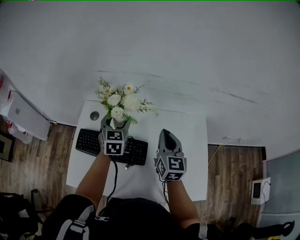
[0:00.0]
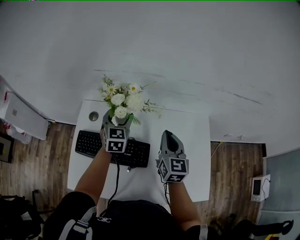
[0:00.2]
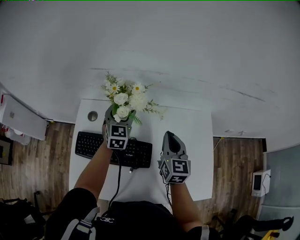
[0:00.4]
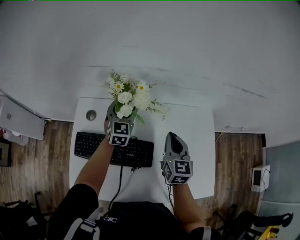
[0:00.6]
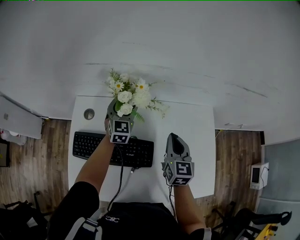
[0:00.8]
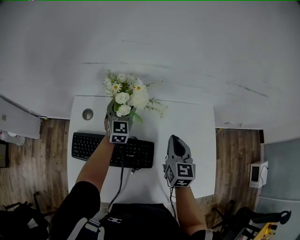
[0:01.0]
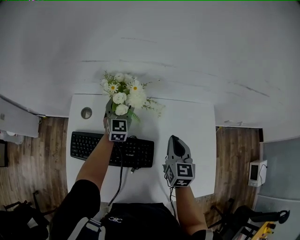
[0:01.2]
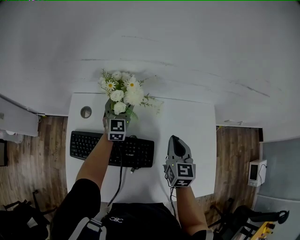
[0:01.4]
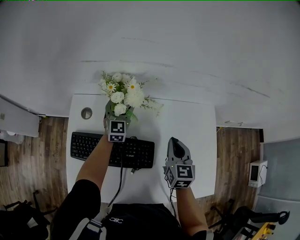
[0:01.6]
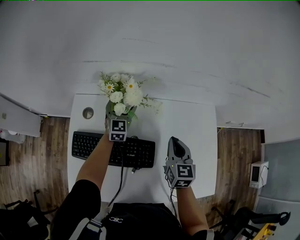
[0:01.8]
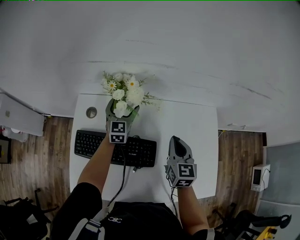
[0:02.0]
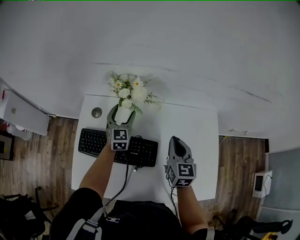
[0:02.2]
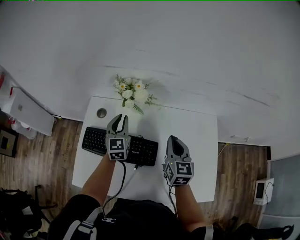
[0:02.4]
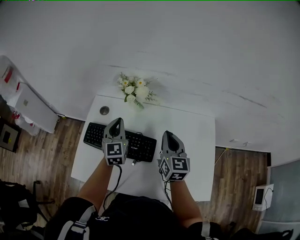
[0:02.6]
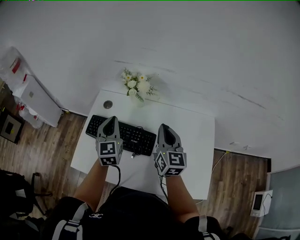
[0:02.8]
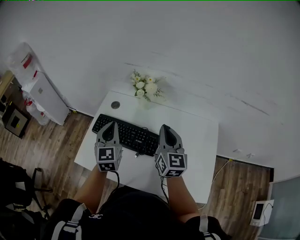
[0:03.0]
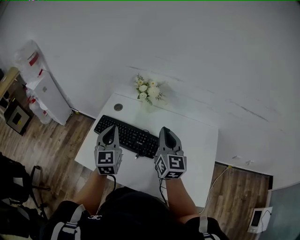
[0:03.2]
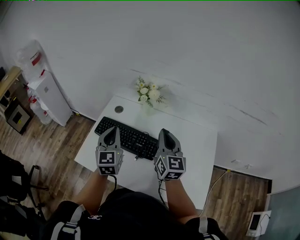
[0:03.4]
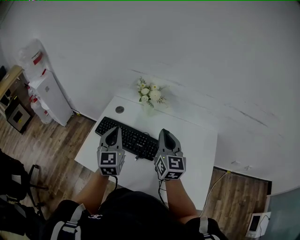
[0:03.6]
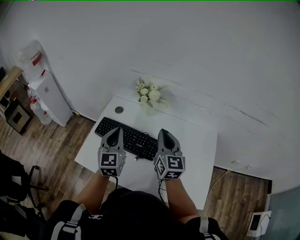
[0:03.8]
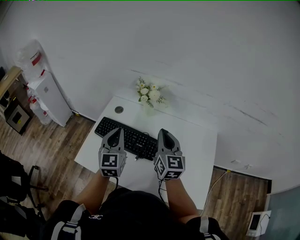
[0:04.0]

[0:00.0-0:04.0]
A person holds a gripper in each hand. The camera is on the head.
0:00.0 to 0:01.4: The left gripper moves forward and downward, roughly 20 cm, while the right gripper moves downward, about 10 cm.
0:01.4 to 0:02.6: The left gripper travels backward and upward by roughly 25 cm, and closes up, while the right gripper shifts approximately 10 cm upward and backward.
0:02.6 to 0:04.0: The left gripper moves backward and upward, roughly 20 cm, while the right gripper heads upward, backward and to the left, covering about 10 cm.

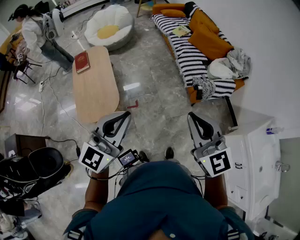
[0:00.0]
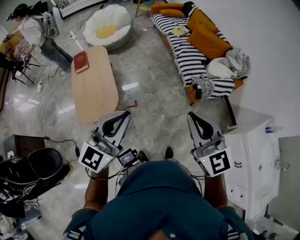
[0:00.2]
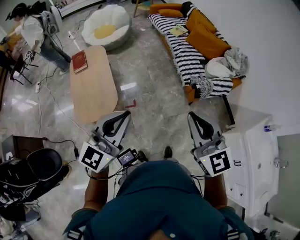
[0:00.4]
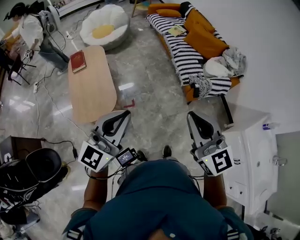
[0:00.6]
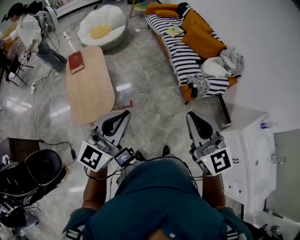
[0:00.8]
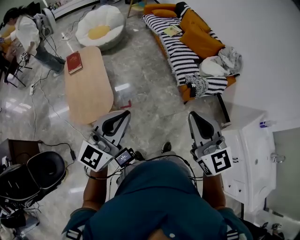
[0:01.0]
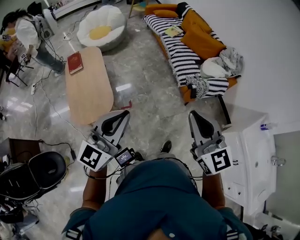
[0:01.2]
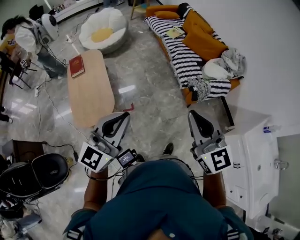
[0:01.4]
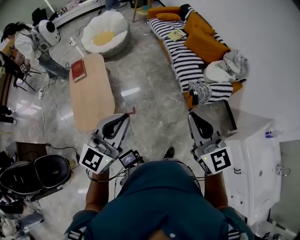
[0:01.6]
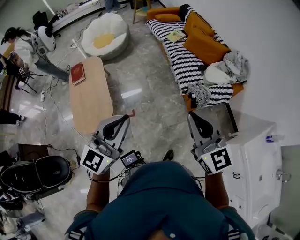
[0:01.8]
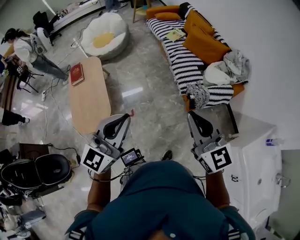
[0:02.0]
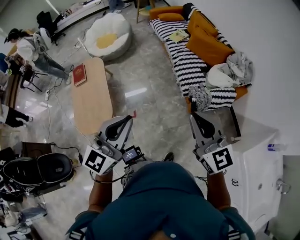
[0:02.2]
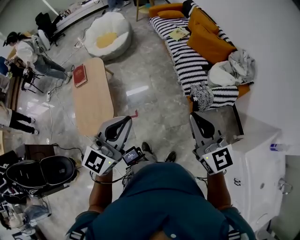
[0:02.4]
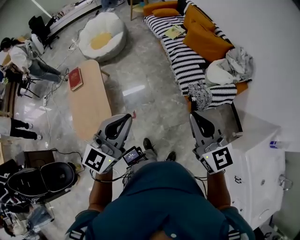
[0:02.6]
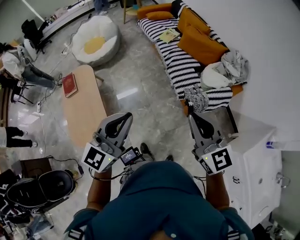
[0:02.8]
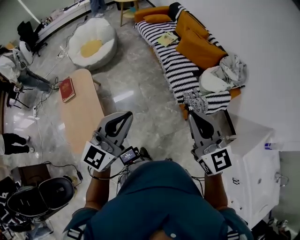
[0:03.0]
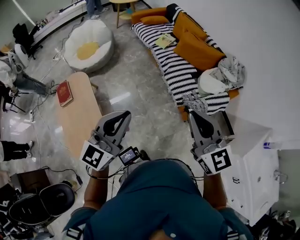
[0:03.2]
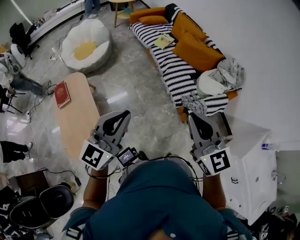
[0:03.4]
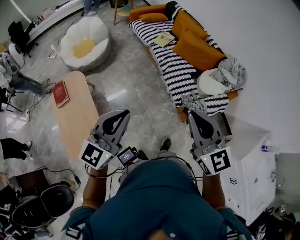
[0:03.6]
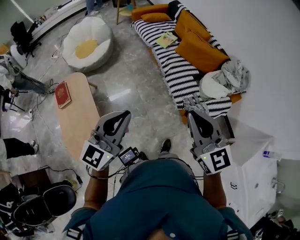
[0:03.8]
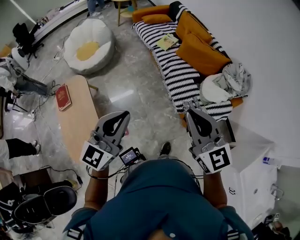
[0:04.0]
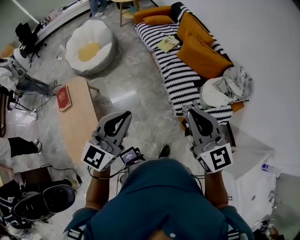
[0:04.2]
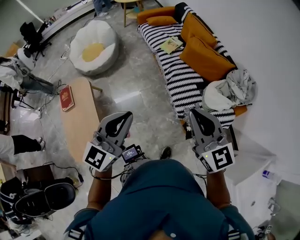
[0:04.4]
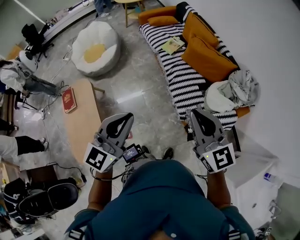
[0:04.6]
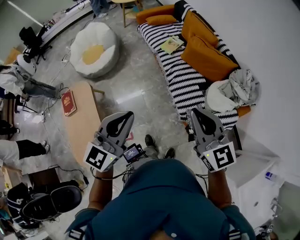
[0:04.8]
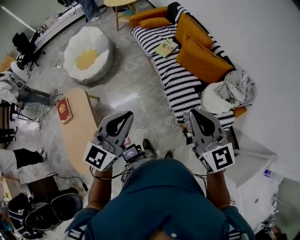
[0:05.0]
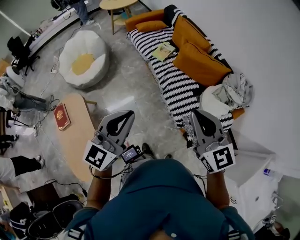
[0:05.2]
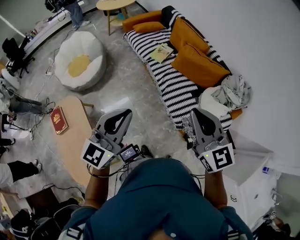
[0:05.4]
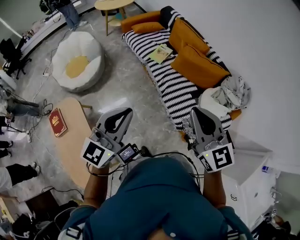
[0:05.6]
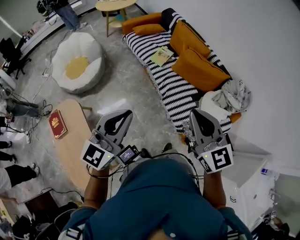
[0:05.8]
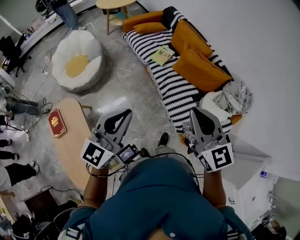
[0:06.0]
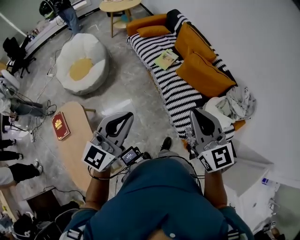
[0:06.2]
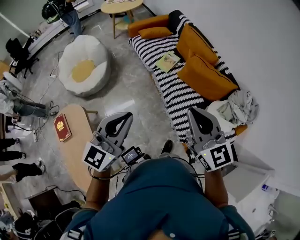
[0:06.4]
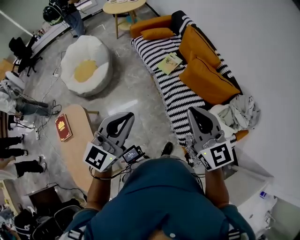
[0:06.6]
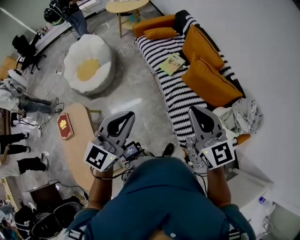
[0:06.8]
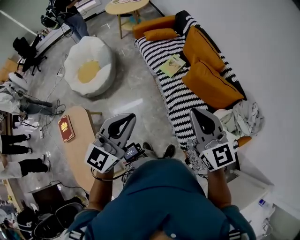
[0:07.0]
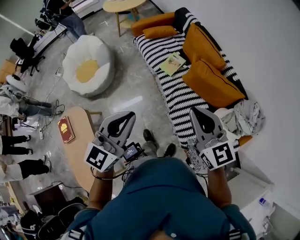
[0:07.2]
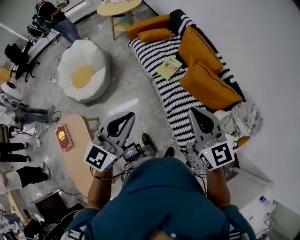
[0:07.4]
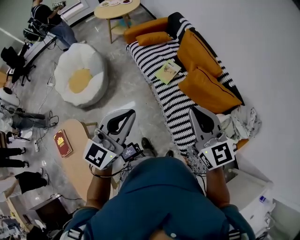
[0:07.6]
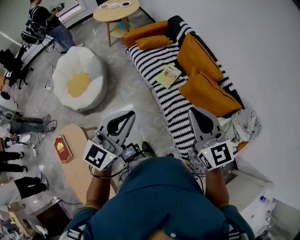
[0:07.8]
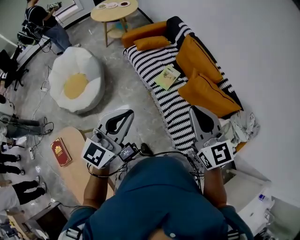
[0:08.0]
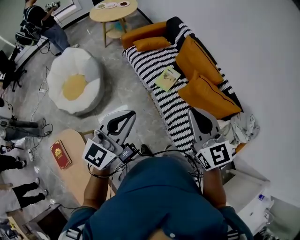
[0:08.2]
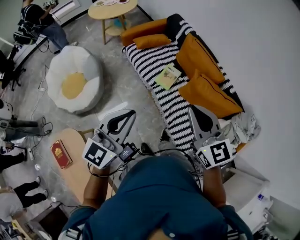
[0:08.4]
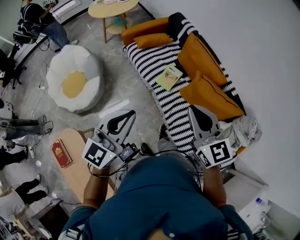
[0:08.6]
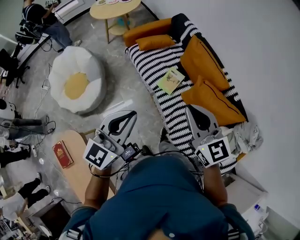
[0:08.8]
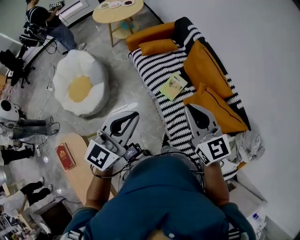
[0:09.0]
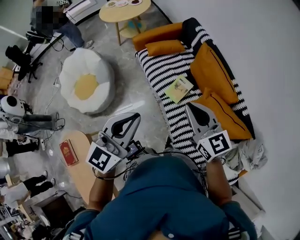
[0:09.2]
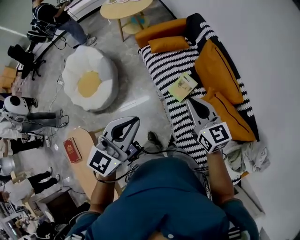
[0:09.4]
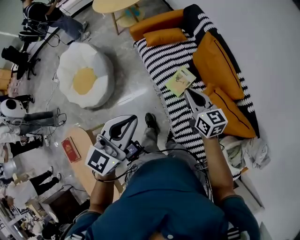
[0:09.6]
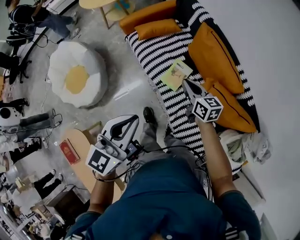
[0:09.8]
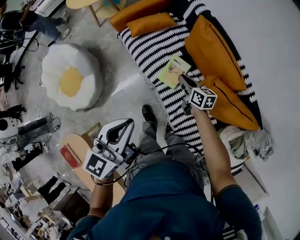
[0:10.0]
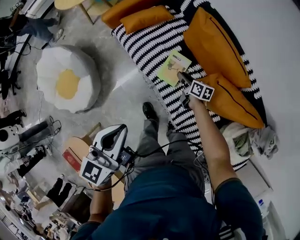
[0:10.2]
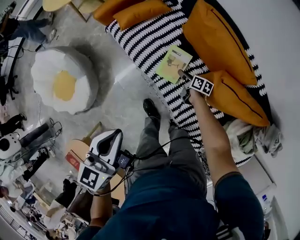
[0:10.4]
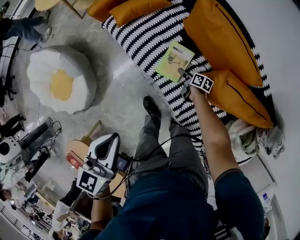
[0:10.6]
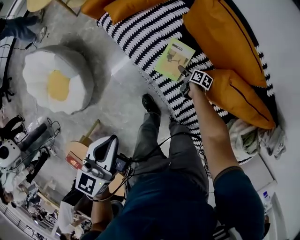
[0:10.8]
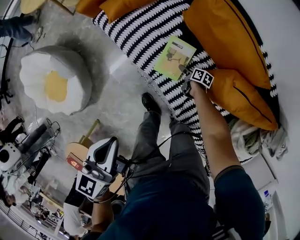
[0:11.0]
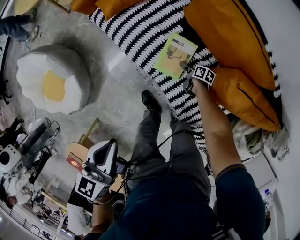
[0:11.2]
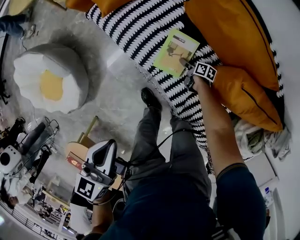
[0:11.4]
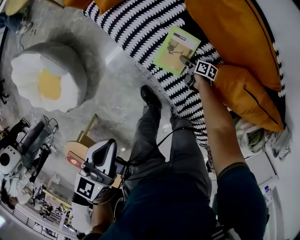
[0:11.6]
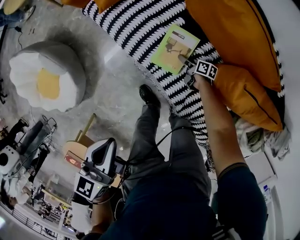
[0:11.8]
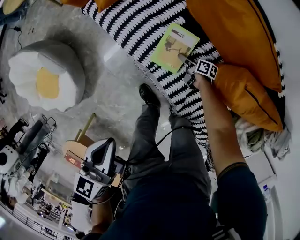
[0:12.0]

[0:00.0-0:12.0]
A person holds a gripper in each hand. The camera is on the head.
0:00.0 to 0:01.6: The left gripper changes place by roughly 5 cm; the right gripper travels to the right and forward by some 10 cm.
0:01.6 to 0:03.0: Both grippers travel together forward, approximately 20 cm.
0:03.0 to 0:04.4: The two grippers go some 20 cm forward.
0:04.4 to 0:06.0: The two grippers go some 20 cm forward and to the left.
0:06.0 to 0:07.6: The two grippers go roughly 25 cm forward.
0:07.6 to 0:09.0: The grippers both shift forward by roughly 20 cm.
0:09.0 to 0:10.4: The left gripper goes about 25 cm downward and forward, and swivels roughly 30 degrees. Meanwhile the right gripper goes roughly 70 cm downward and forward, rotates around the line of its fingers by about 70 degrees, clockwise from behind, and opens its fingers.
0:10.4 to 0:12.0: The two grippers go approximately 15 cm downward.

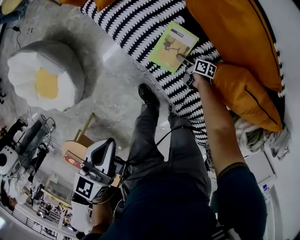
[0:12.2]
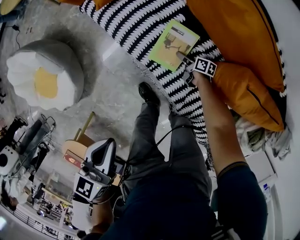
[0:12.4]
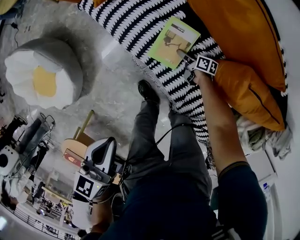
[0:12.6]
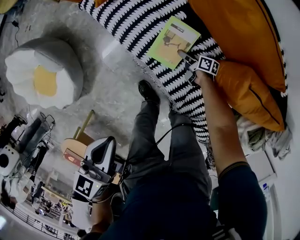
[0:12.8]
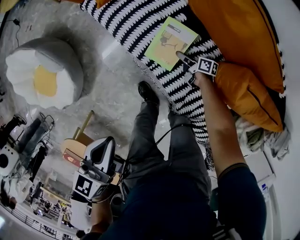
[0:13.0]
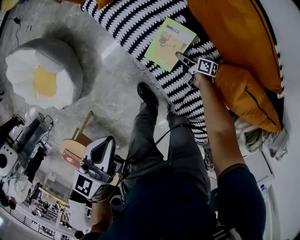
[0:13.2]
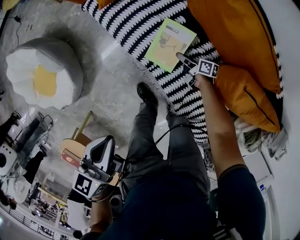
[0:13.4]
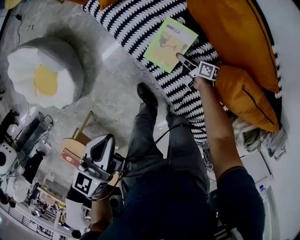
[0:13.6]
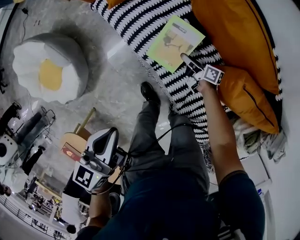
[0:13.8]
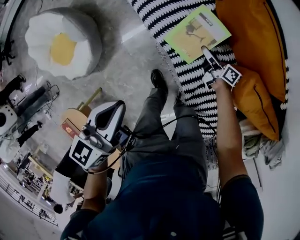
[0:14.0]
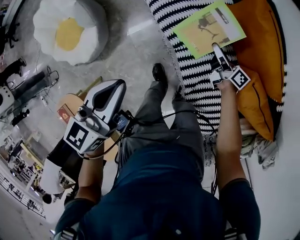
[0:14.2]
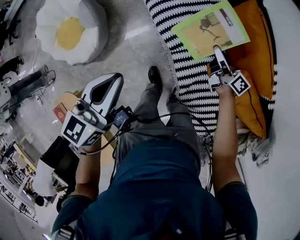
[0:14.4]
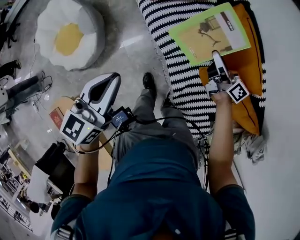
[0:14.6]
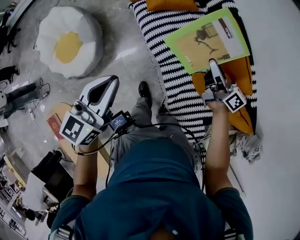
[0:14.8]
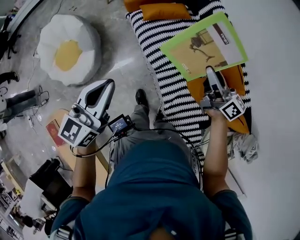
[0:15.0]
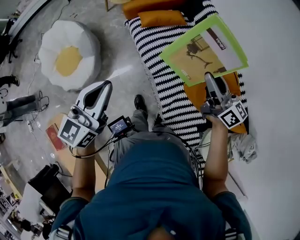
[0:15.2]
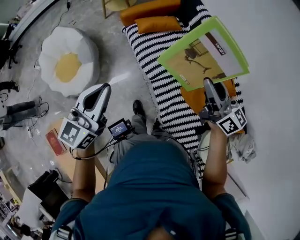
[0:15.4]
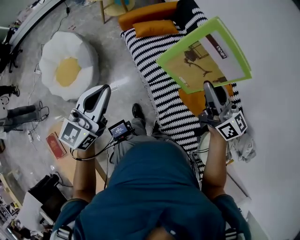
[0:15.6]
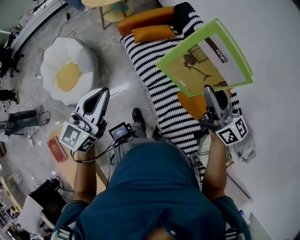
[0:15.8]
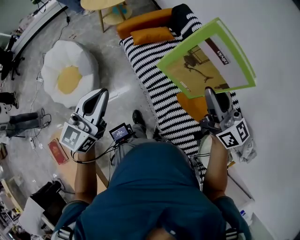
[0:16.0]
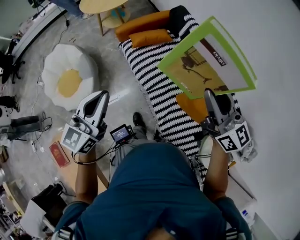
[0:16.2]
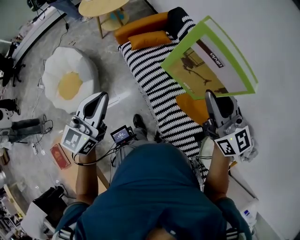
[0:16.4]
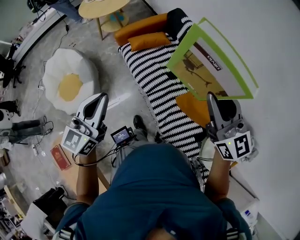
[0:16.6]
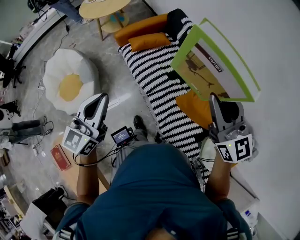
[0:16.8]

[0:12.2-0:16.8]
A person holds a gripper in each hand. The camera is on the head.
0:12.2 to 0:13.8: The left gripper travels downward by roughly 5 cm. Meanwhile the right gripper swivels some 20 degrees, and closes.
0:13.8 to 0:15.2: The right gripper goes about 60 cm upward, and rotates around the line of its fingers by about 40 degrees, counterclockwise from behind. The left gripper shifts some 25 cm upward, and turns by approximately 30 degrees.
0:15.2 to 0:16.8: The right gripper moves upward and backward, roughly 25 cm, and turns by roughly 40 degrees. Meanwhile the left gripper moves upward, roughly 10 cm.

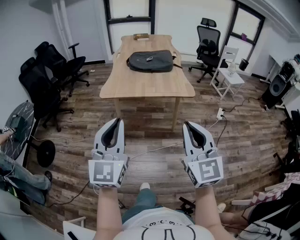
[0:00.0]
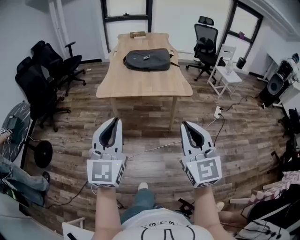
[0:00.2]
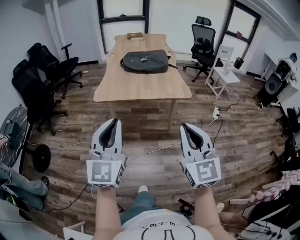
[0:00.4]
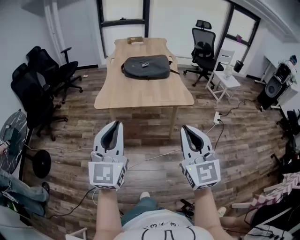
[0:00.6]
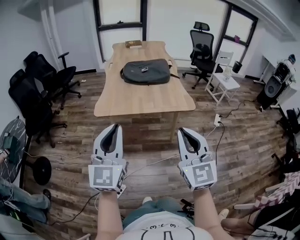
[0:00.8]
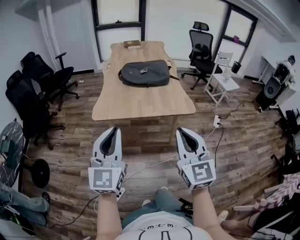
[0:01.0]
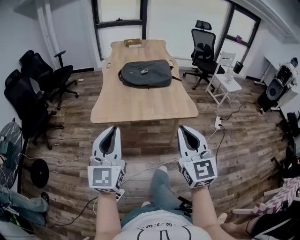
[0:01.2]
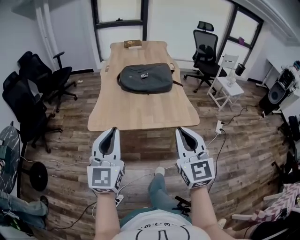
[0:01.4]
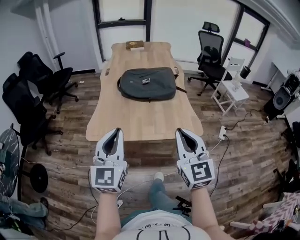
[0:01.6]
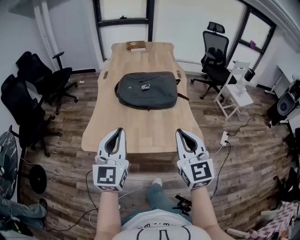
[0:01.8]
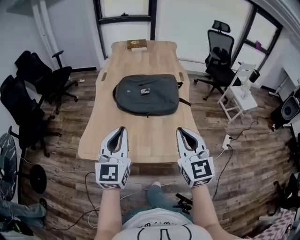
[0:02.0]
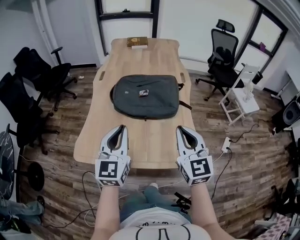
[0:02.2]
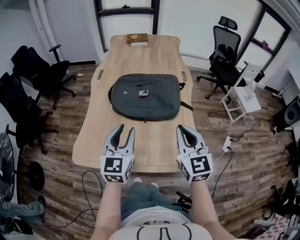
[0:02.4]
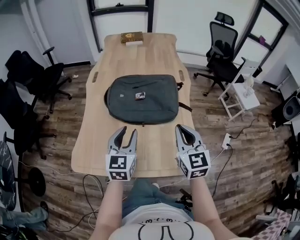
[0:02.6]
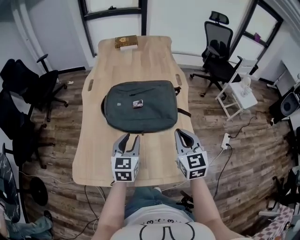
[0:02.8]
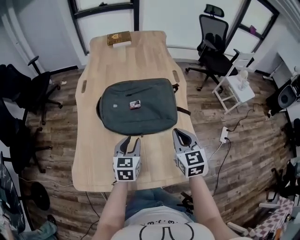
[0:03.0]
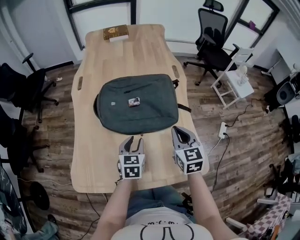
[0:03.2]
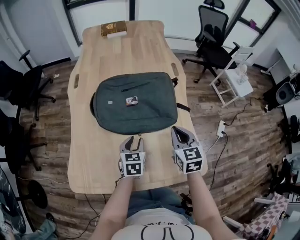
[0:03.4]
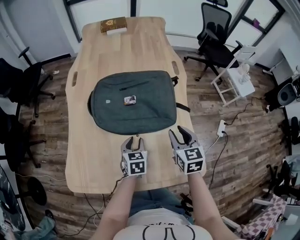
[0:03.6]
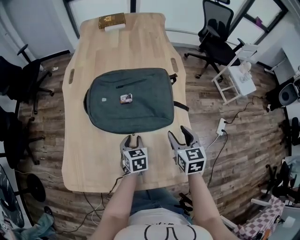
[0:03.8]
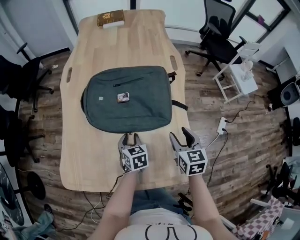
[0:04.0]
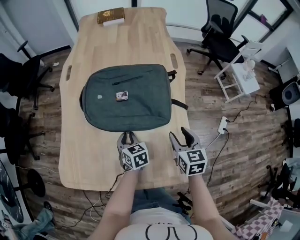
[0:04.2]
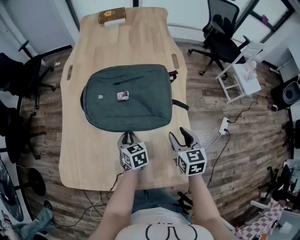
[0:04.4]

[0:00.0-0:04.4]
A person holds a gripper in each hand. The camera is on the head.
0:00.0 to 0:01.4: Both grippers move forward, about 25 cm.
0:01.4 to 0:03.0: The pair of grippers is taken forward, some 40 cm. The right gripper rotates some 20 degrees. The left gripper shifts some 20 cm downward, tips its fingers downward by roughly 30 degrees, and opens up.
0:03.0 to 0:04.4: The right gripper is displaced downward and to the right by roughly 10 cm, and opens its fingers. Meanwhile the left gripper shifts roughly 15 cm downward, turns by about 30 degrees, and closes its fingers.
